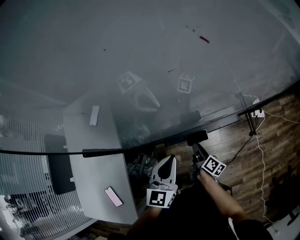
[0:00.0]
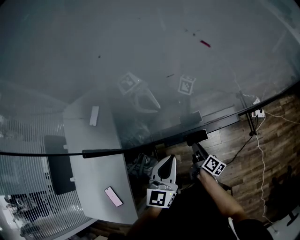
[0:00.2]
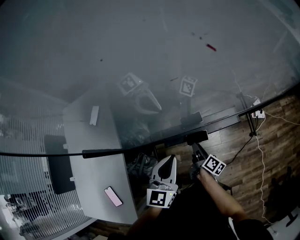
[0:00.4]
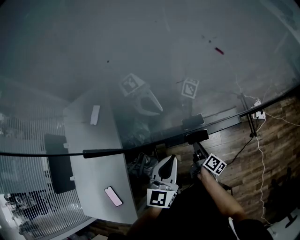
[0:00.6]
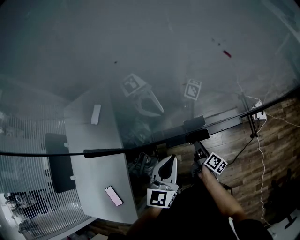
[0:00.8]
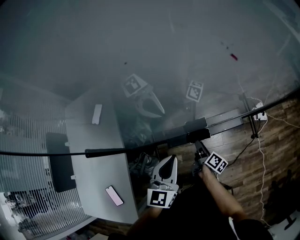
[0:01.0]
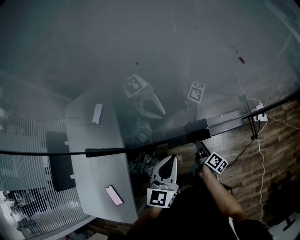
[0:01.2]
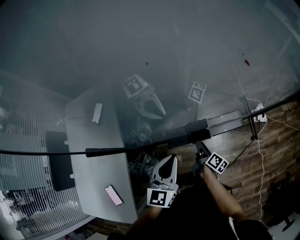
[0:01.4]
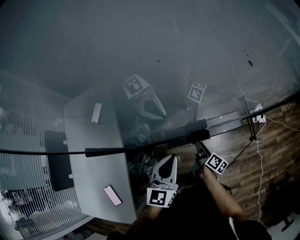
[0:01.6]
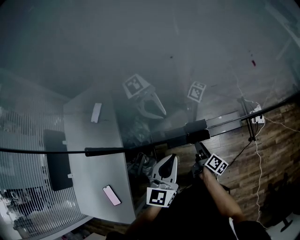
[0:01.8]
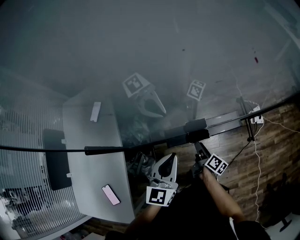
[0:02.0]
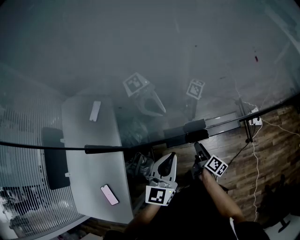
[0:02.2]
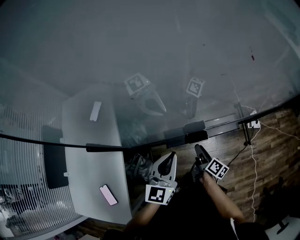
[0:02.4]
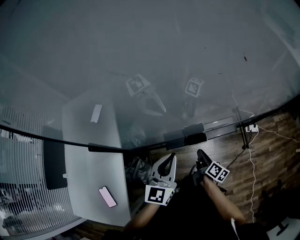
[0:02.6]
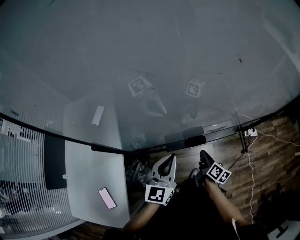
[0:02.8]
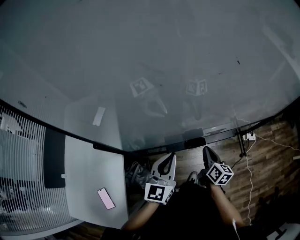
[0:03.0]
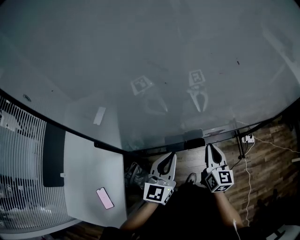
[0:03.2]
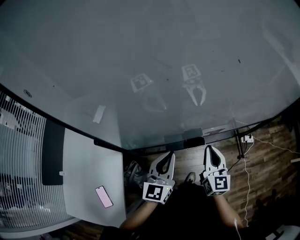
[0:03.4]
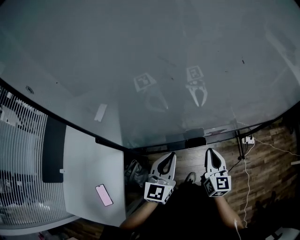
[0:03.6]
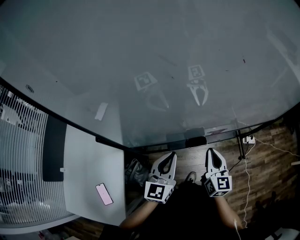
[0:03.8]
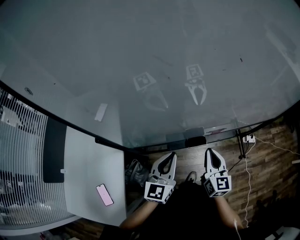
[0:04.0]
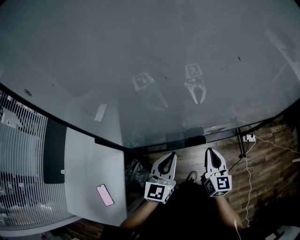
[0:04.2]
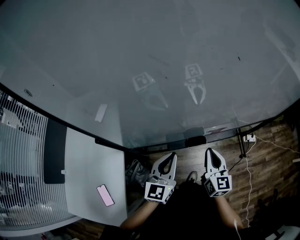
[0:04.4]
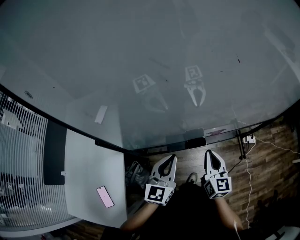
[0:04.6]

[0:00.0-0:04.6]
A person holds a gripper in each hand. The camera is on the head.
0.0 to 1.6 s: The grippers stay close to where they were, moving slightly.
1.6 to 3.0 s: The right gripper heads upward, covering approximately 10 cm, rotates approximately 30 degrees, and closes its fingers.
3.0 to 4.6 s: The right gripper travels upward by approximately 10 cm, and swivels some 30 degrees.

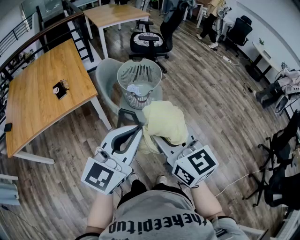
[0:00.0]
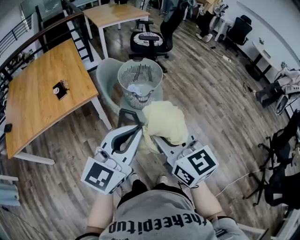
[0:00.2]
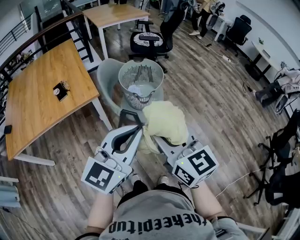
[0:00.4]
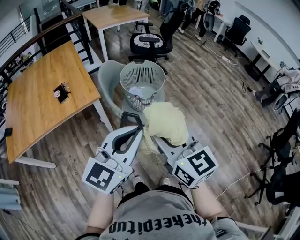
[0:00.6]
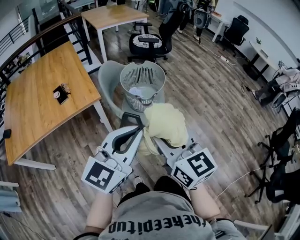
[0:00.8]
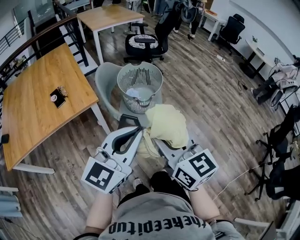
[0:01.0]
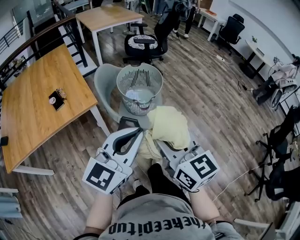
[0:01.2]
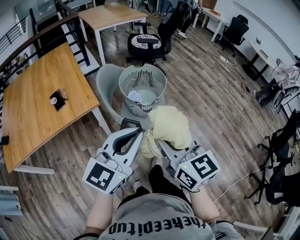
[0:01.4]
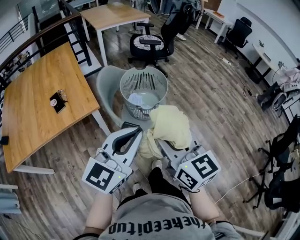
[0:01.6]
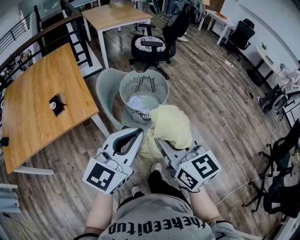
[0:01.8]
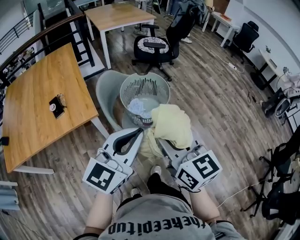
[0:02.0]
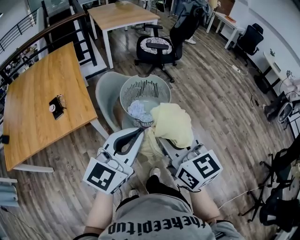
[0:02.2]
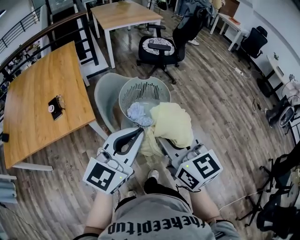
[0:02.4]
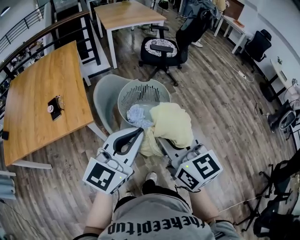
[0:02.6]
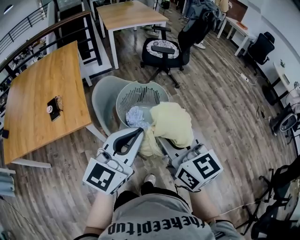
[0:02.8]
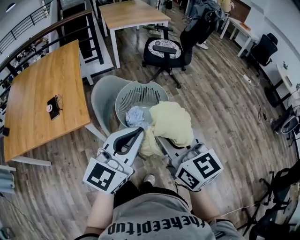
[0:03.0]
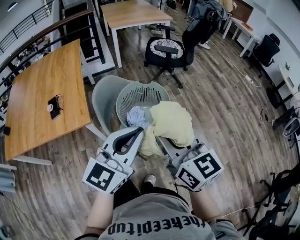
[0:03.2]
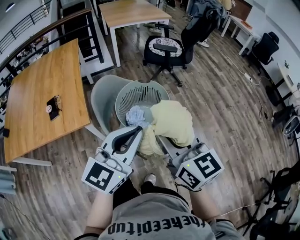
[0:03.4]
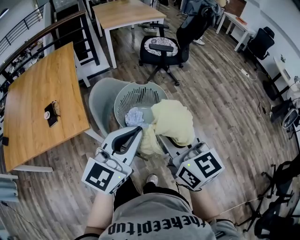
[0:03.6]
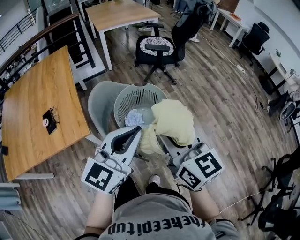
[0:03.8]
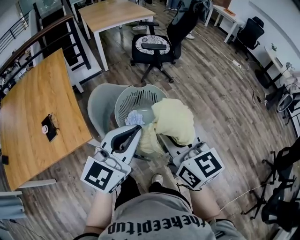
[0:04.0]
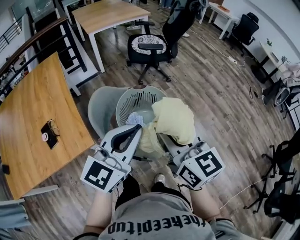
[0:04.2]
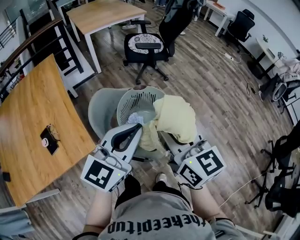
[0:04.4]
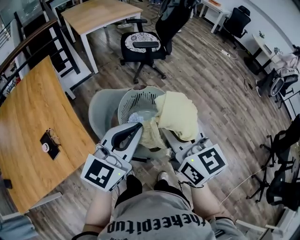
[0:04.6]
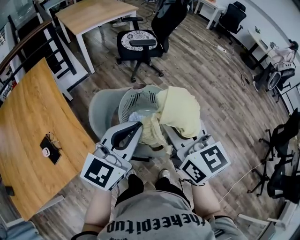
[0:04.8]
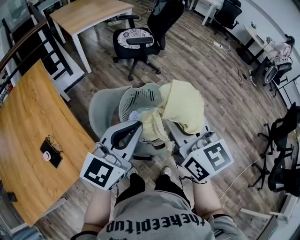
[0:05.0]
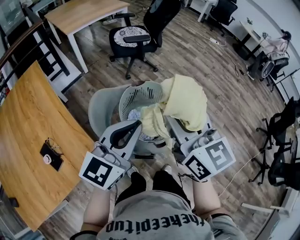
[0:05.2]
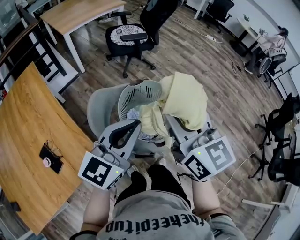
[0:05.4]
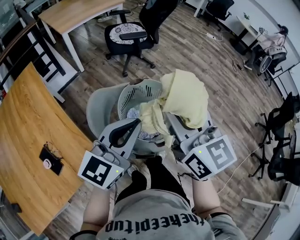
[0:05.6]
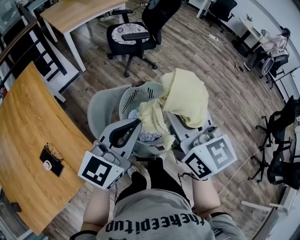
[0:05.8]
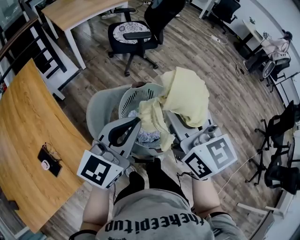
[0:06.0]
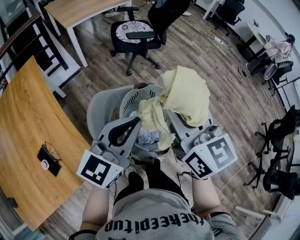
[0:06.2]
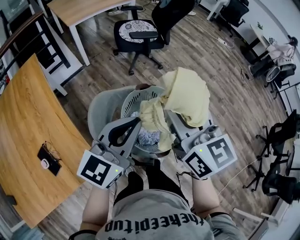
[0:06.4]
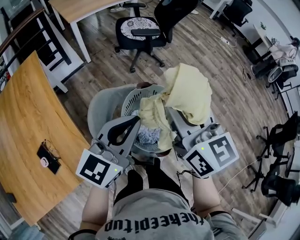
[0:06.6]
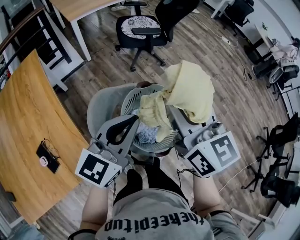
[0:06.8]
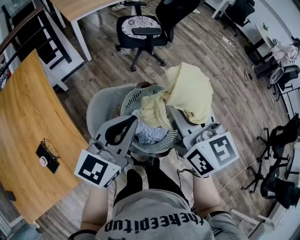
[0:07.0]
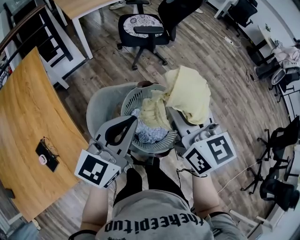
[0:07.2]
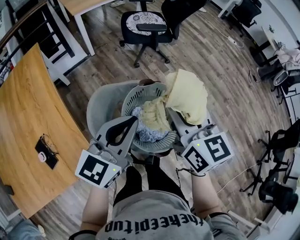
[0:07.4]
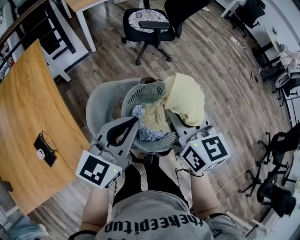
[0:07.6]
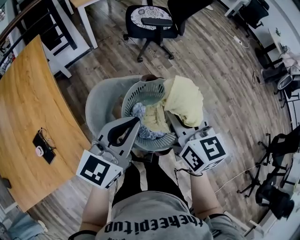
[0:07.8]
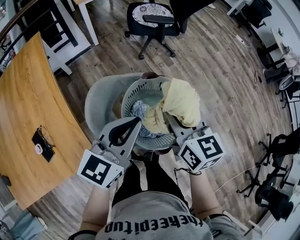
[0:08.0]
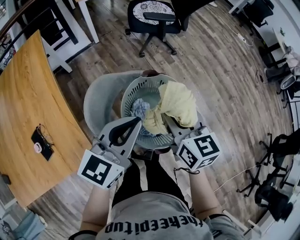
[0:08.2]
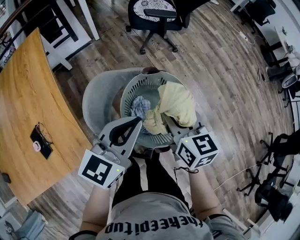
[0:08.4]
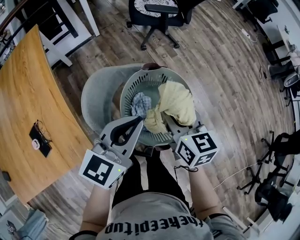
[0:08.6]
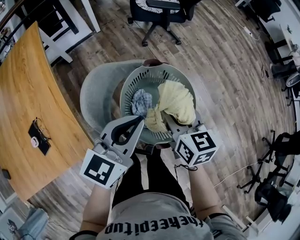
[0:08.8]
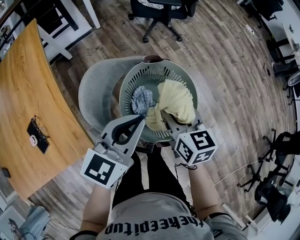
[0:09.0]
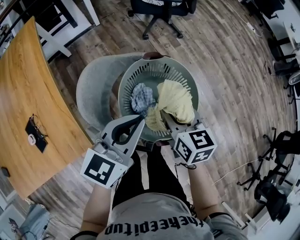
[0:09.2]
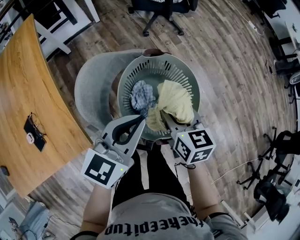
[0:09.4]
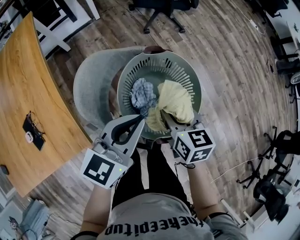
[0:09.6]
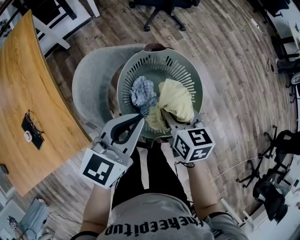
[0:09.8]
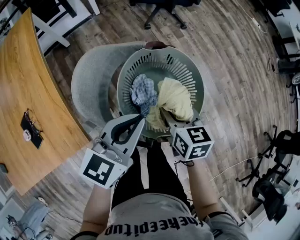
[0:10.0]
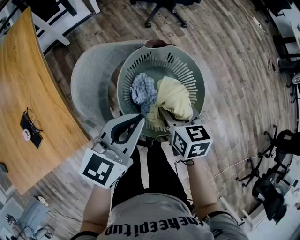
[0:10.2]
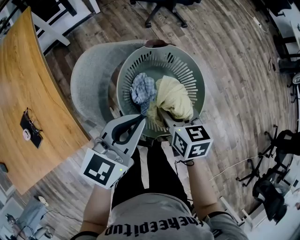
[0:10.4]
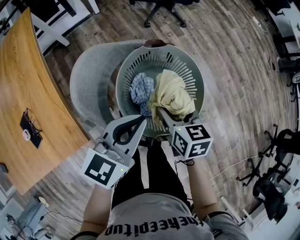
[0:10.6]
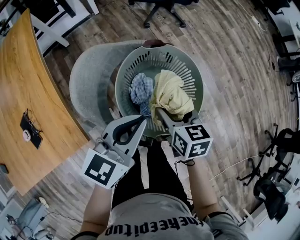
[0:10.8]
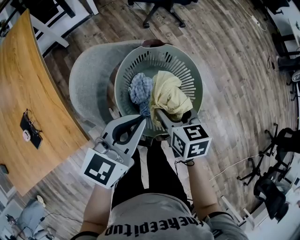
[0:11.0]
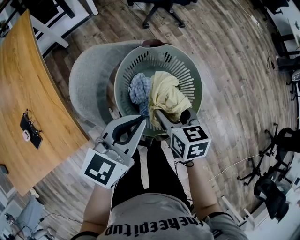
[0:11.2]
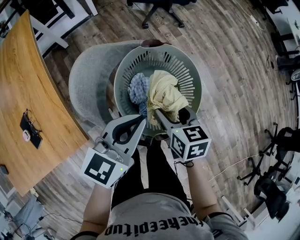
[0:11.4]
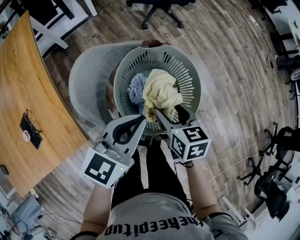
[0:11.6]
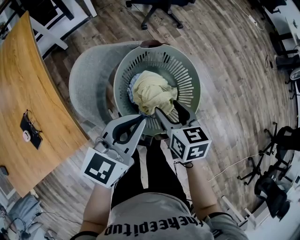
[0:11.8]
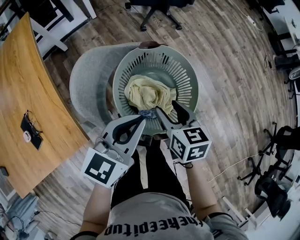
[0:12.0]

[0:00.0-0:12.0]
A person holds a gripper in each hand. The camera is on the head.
0.0 to 1.6 s: The two grippers go some 10 cm forward.
1.6 to 3.0 s: Both grippers travel together forward and to the right, roughly 15 cm.
3.0 to 4.4 s: The two grippers go about 10 cm forward and to the left.
4.4 to 6.0 s: The right gripper goes about 10 cm forward and to the left. The left gripper shifts some 10 cm to the left and forward.
6.0 to 7.6 s: The right gripper is displaced downward and forward by about 10 cm, while the left gripper shifts by approximately 5 cm.
7.6 to 9.0 s: The left gripper travels downward by about 10 cm; the right gripper heads downward, covering some 15 cm.
9.0 to 10.4 s: The right gripper goes roughly 10 cm downward, while the left gripper ends up approximately 5 cm from where it was.
10.4 to 12.0 s: The grippers stay close to where they were, moving slightly.

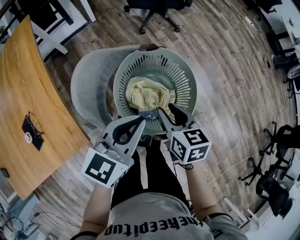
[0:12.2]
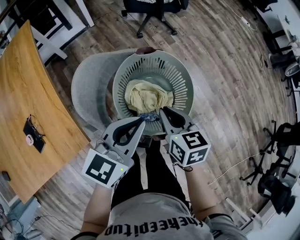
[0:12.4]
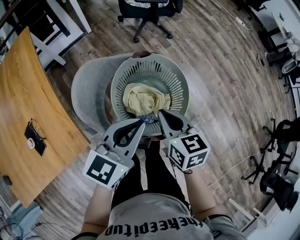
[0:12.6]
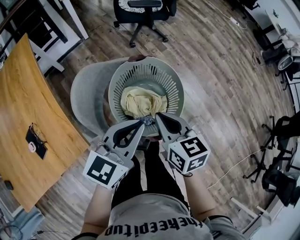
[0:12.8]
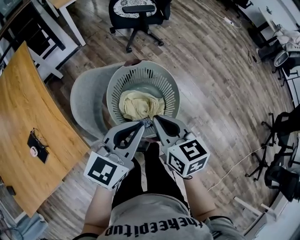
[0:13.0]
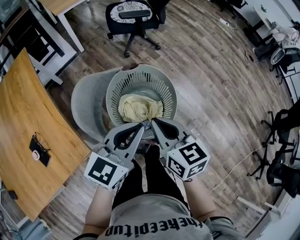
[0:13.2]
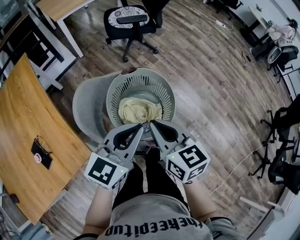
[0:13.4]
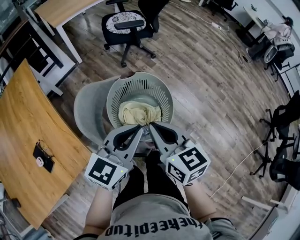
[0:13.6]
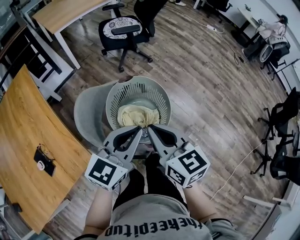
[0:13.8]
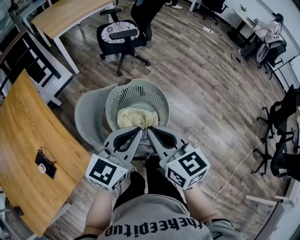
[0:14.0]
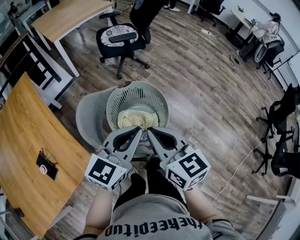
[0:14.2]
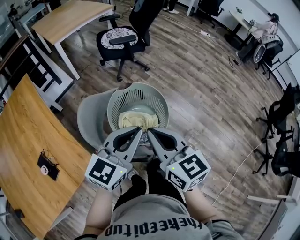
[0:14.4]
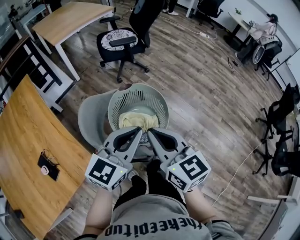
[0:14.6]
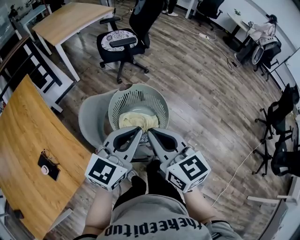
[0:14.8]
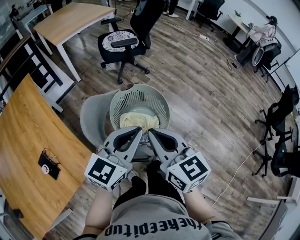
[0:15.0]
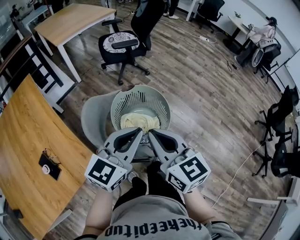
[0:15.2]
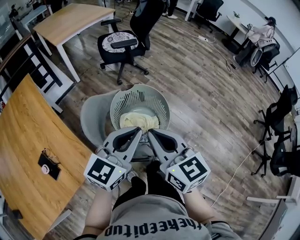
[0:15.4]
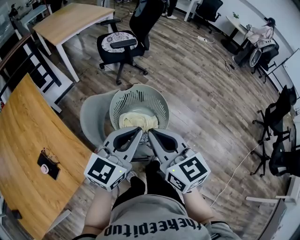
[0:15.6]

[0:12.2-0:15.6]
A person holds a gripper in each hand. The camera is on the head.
12.2 to 13.8 s: The left gripper travels upward by roughly 10 cm. Meanwhile the right gripper goes roughly 15 cm upward, turns by some 20 degrees, and closes up.
13.8 to 15.6 s: The right gripper moves upward, some 5 cm; the left gripper shifts by about 5 cm.

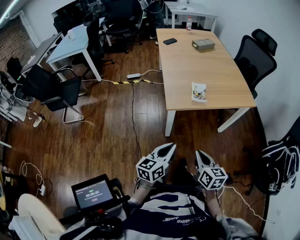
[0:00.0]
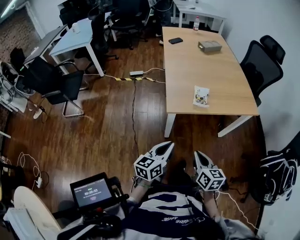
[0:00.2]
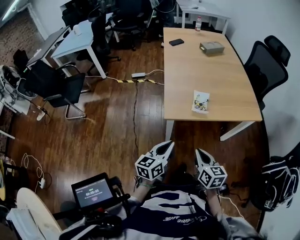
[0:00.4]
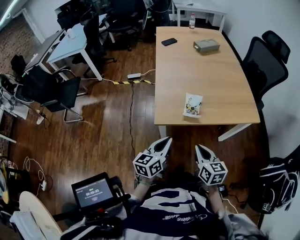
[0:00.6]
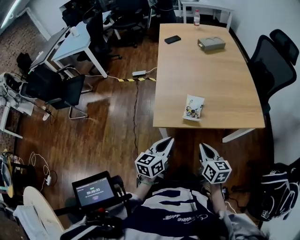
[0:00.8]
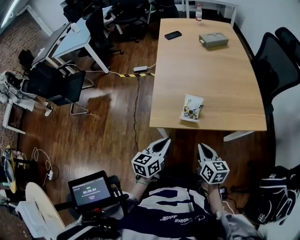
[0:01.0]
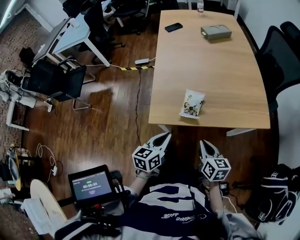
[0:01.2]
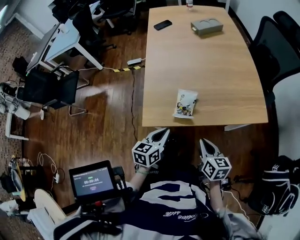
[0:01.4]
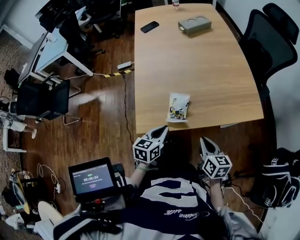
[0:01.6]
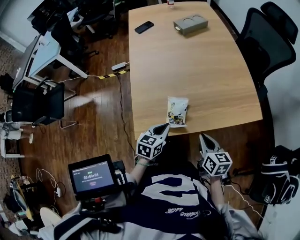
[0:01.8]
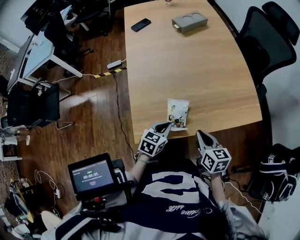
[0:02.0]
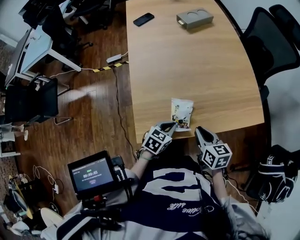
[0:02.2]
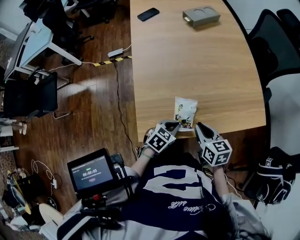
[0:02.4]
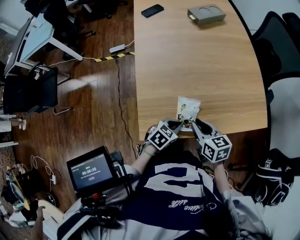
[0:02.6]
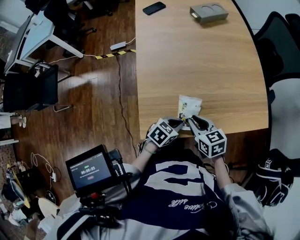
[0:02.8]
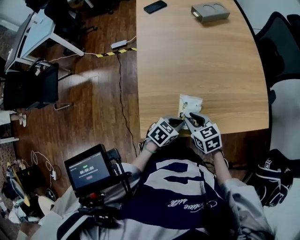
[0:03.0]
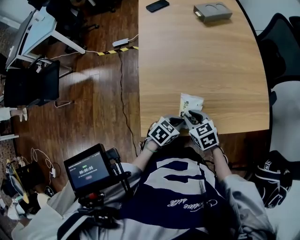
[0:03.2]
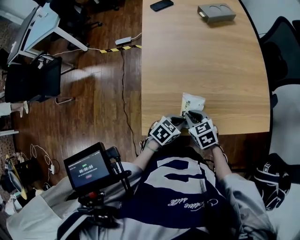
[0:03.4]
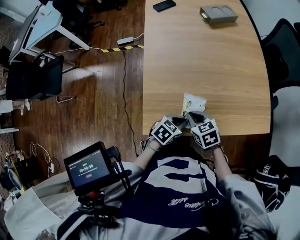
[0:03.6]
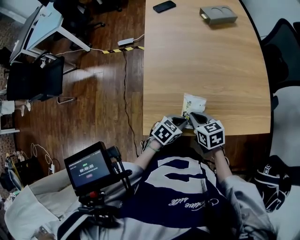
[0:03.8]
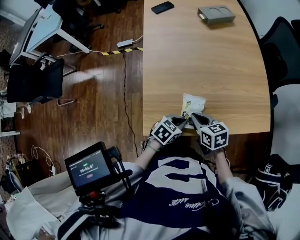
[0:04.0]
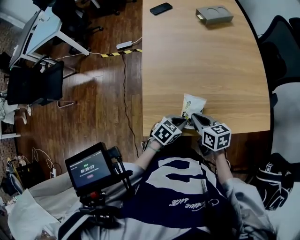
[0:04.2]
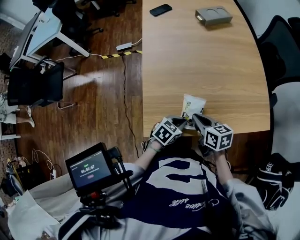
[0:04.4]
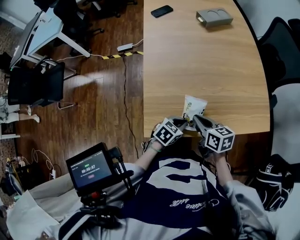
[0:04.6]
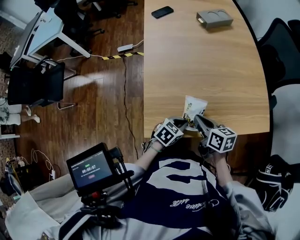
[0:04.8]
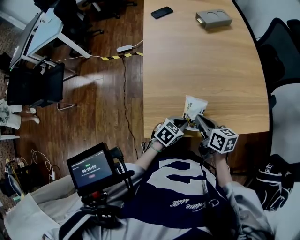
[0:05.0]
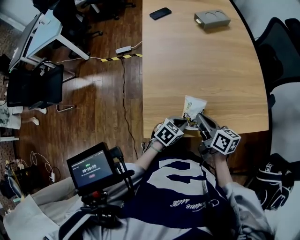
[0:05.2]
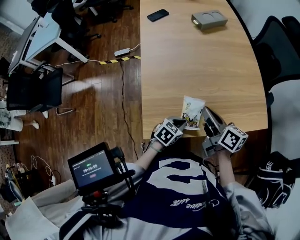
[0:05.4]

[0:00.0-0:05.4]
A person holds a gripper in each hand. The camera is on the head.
0.0 to 1.4 s: The left gripper travels forward by about 30 cm, while the right gripper goes about 30 cm forward and to the right.
1.4 to 2.8 s: The left gripper goes some 15 cm forward and downward, and changes its angle by about 40 degrees. Meanwhile the right gripper shifts some 20 cm forward and to the left, and changes its angle by some 20 degrees.
2.8 to 4.0 s: There are only small adjustments of the grippers.
4.0 to 5.4 s: The right gripper travels upward by roughly 10 cm, and changes its angle by roughly 40 degrees.
